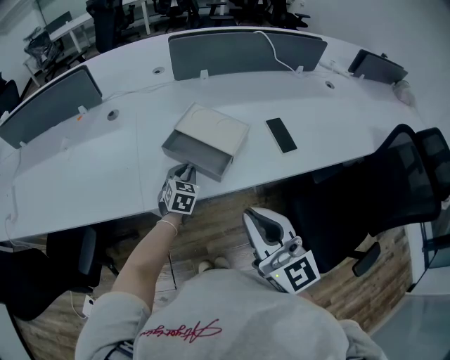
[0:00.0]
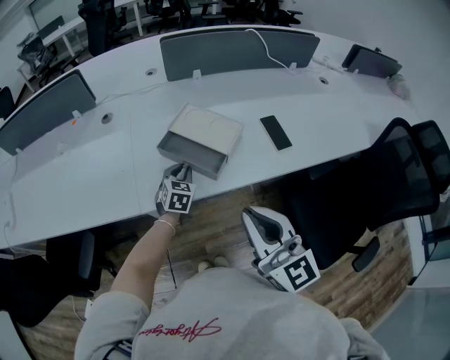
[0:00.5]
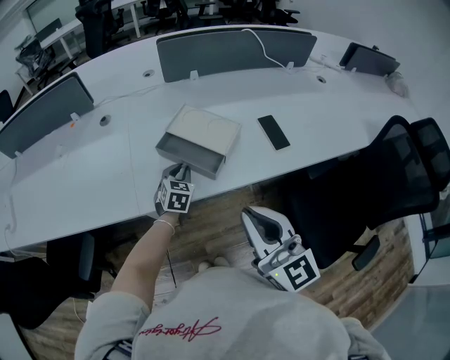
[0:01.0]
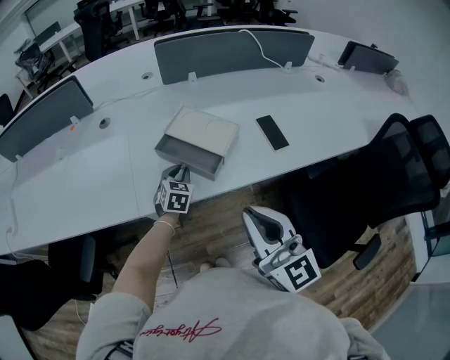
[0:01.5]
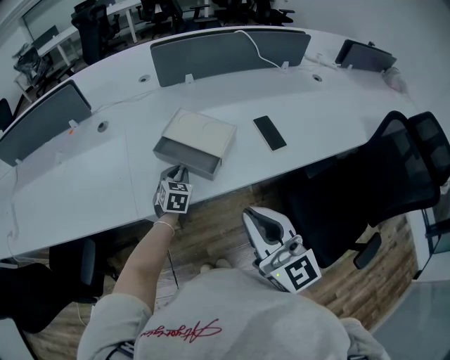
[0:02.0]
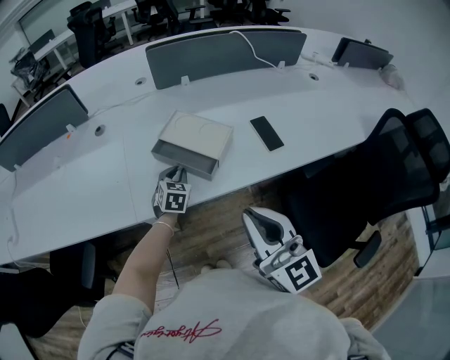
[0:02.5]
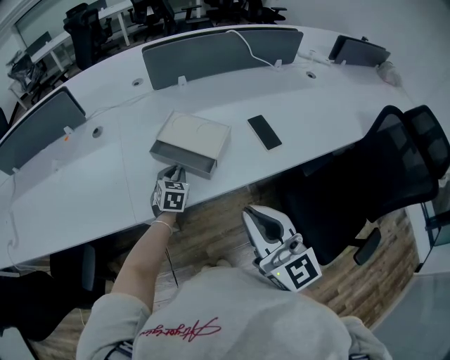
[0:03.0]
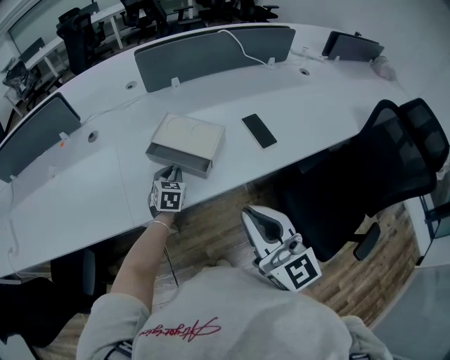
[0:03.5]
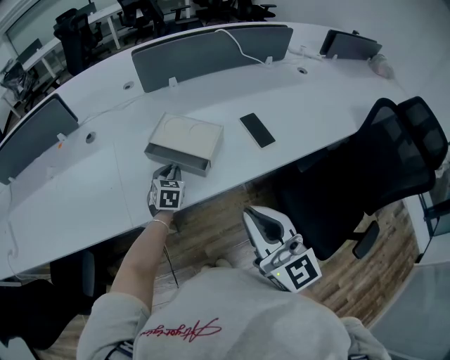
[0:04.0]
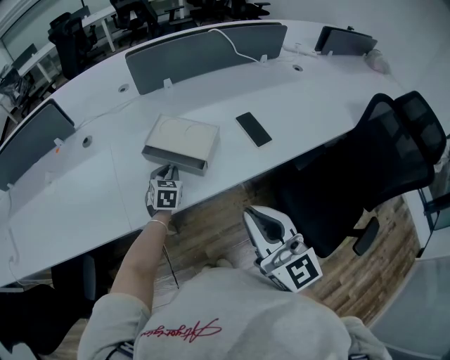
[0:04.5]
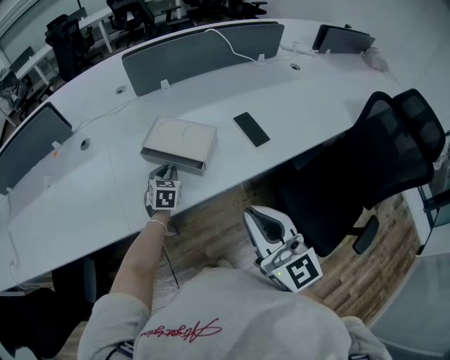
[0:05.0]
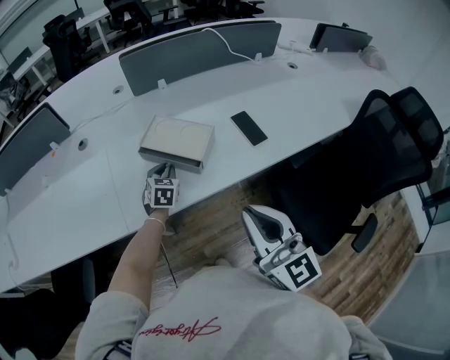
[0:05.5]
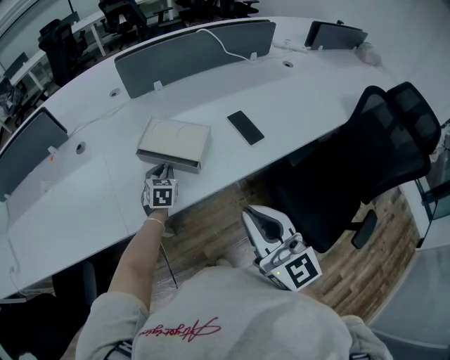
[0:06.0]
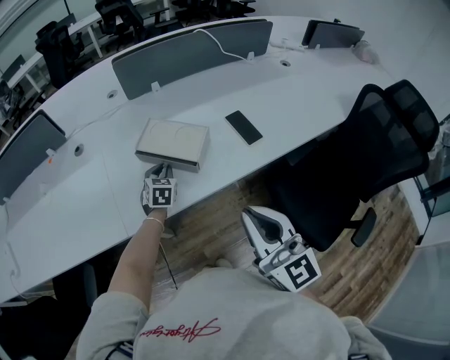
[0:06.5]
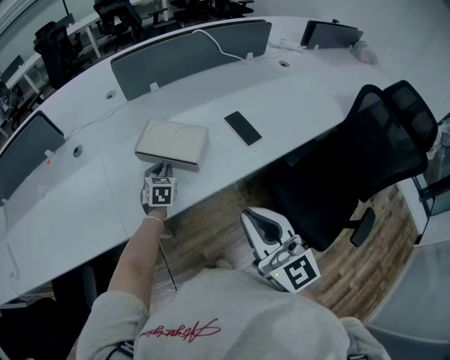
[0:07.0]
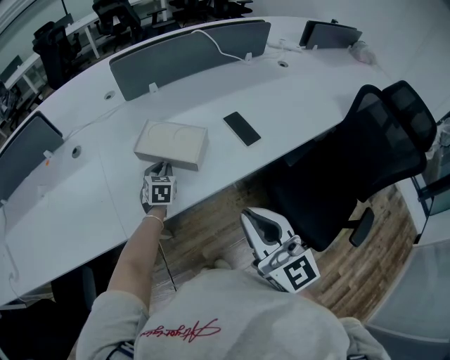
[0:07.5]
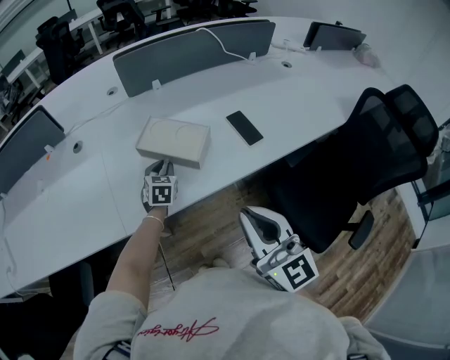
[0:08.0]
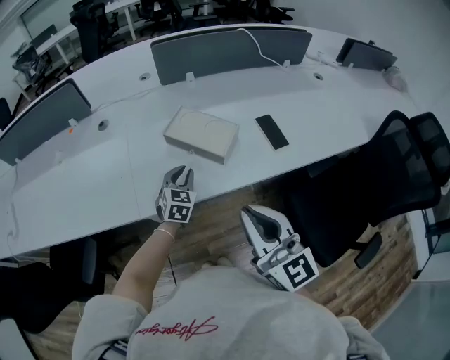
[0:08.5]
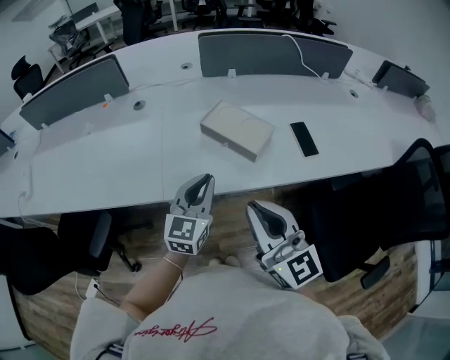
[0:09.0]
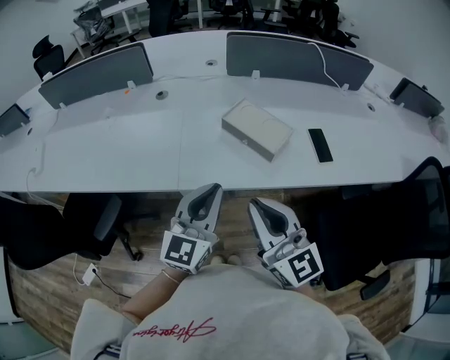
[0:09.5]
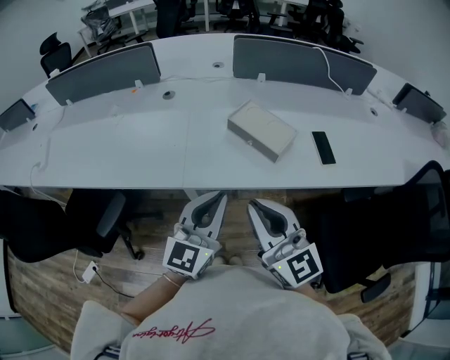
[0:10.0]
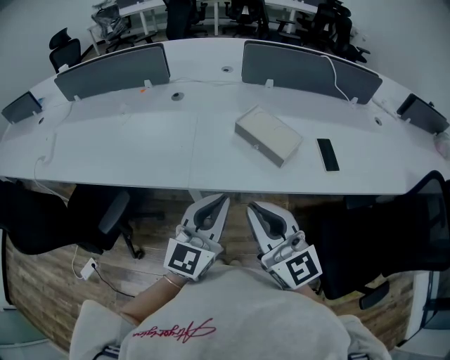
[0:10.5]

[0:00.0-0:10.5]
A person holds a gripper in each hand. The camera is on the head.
0:00.0 to 0:04.0: The grippers move only a little.
0:04.0 to 0:06.5: The grippers move only a little.
0:06.5 to 0:08.5: The left gripper is displaced backward by about 5 cm.
0:08.5 to 0:10.5: The left gripper is displaced backward, upward and to the left by roughly 30 cm, and tips its fingers upward by roughly 30 degrees, while the right gripper heads to the left, covering about 10 cm, and swivels about 20 degrees.

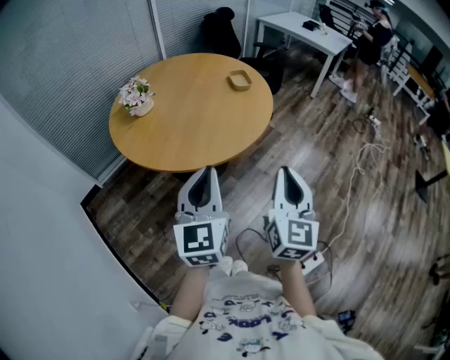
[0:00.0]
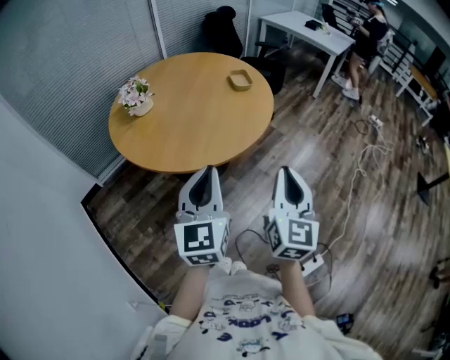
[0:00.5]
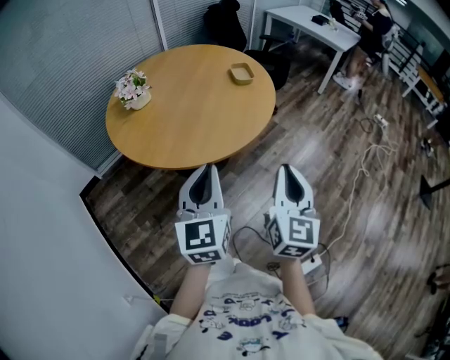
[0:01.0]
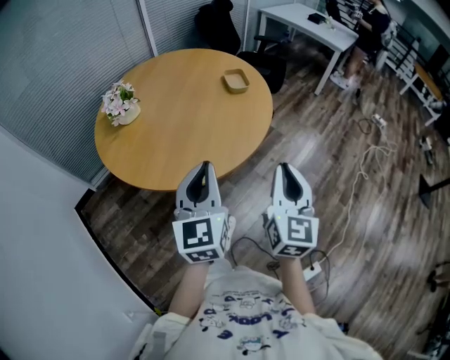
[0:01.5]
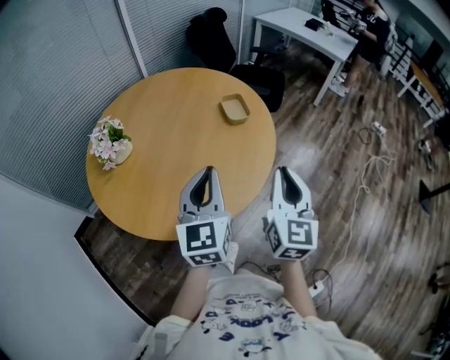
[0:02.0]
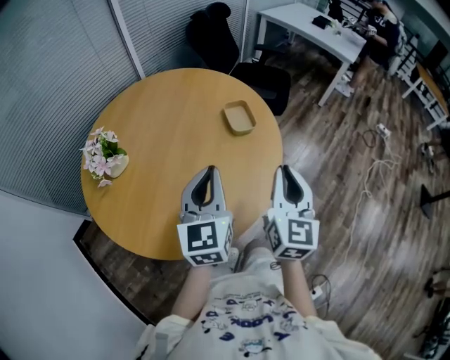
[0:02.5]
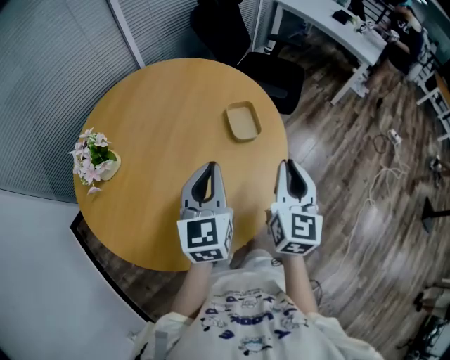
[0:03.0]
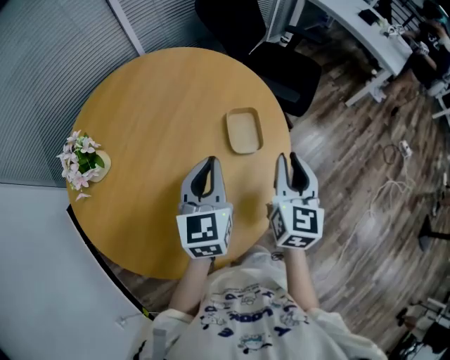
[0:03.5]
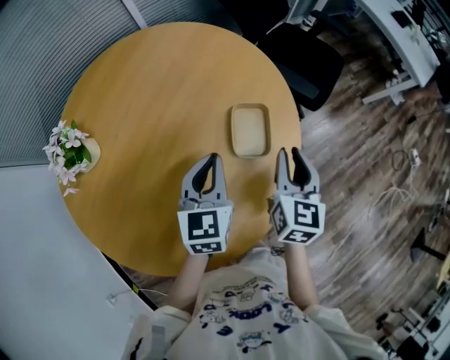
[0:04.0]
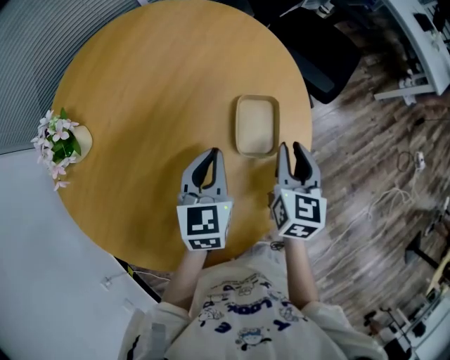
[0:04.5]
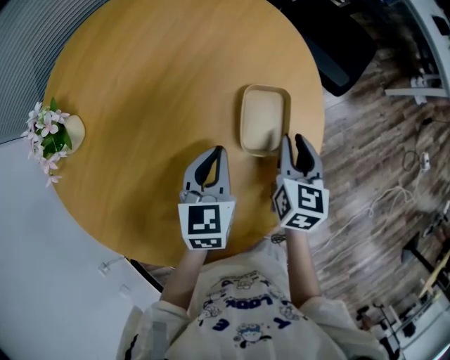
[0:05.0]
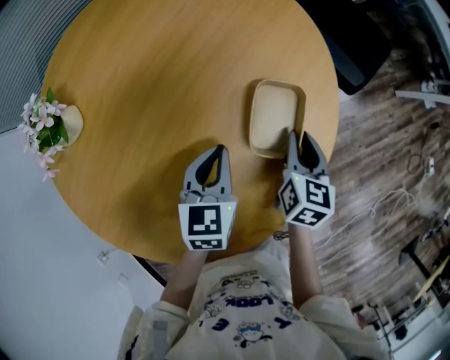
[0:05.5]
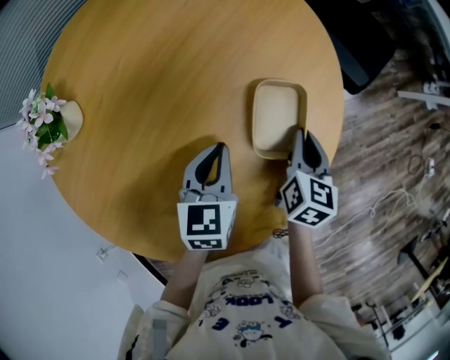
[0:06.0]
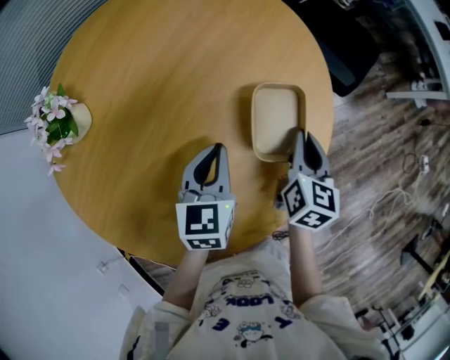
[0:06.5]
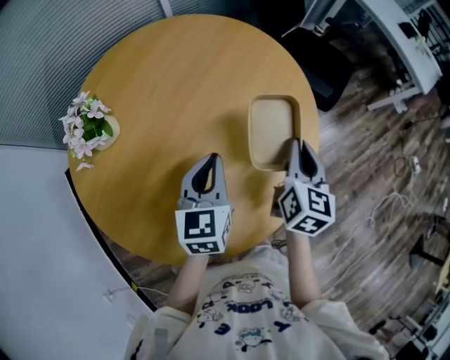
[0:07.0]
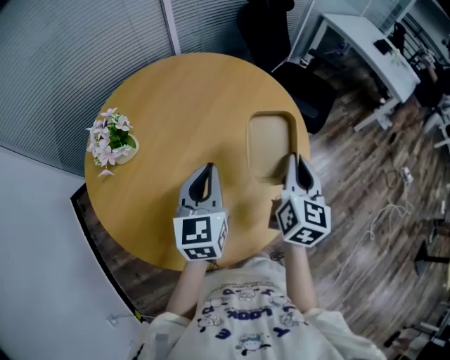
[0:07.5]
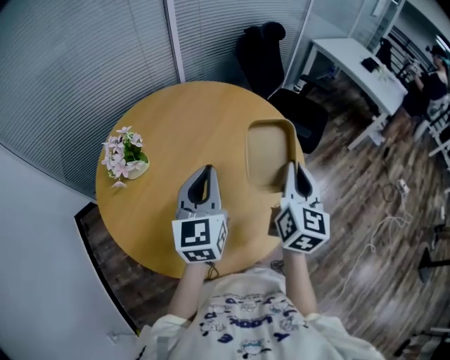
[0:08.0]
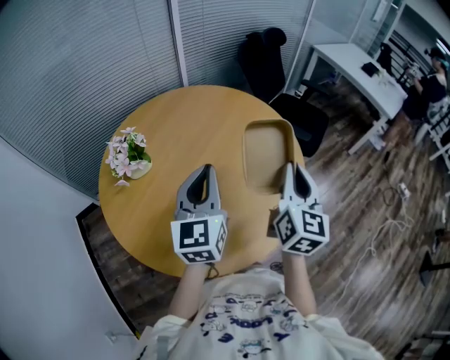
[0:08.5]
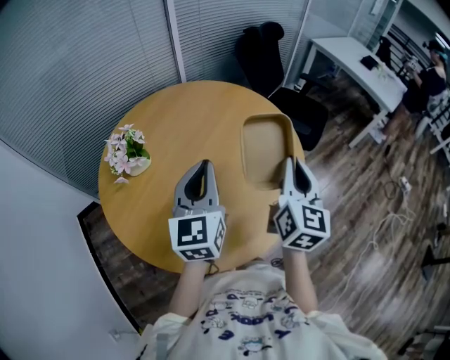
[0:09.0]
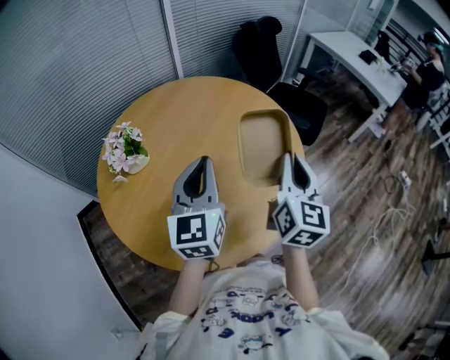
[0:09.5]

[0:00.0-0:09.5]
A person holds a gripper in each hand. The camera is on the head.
0:00.0 to 0:02.0: The grippers both shift forward by about 30 cm.
0:02.0 to 0:04.0: Both grippers travel together forward and downward, some 40 cm. The left gripper rotates roughly 20 degrees; the right gripper changes its angle by roughly 20 degrees.
0:04.0 to 0:05.5: Both grippers move downward, roughly 15 cm.
0:05.5 to 0:07.5: The right gripper shifts roughly 30 cm upward and backward, and swivels about 30 degrees. Meanwhile the left gripper is displaced upward, backward and to the left by some 25 cm, and changes its angle by some 20 degrees.
0:07.5 to 0:09.5: The right gripper heads upward and backward, covering some 10 cm; the left gripper heads upward, covering approximately 10 cm.

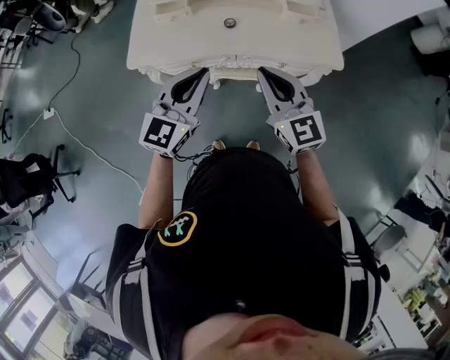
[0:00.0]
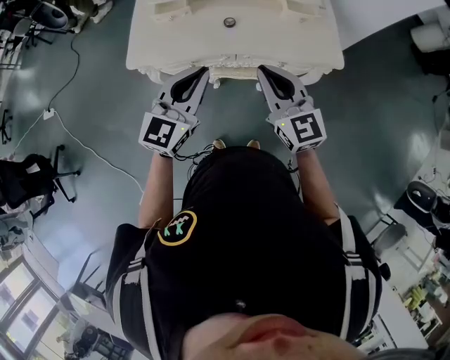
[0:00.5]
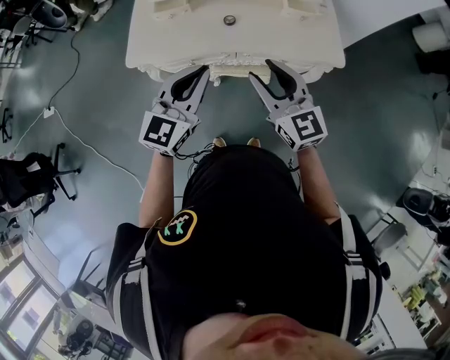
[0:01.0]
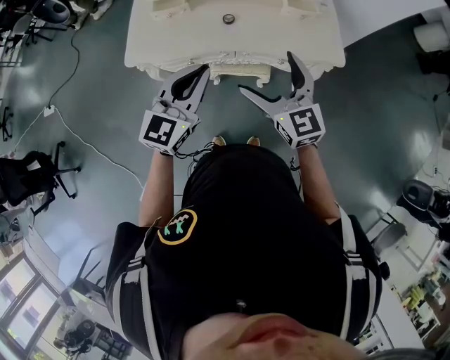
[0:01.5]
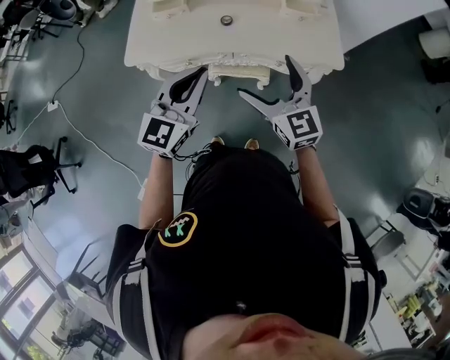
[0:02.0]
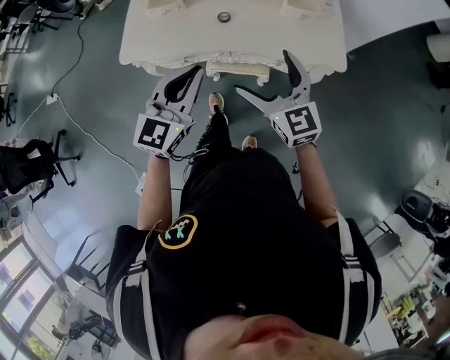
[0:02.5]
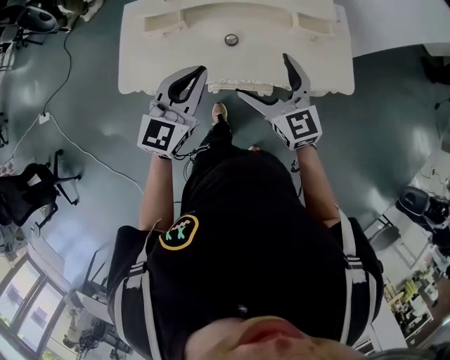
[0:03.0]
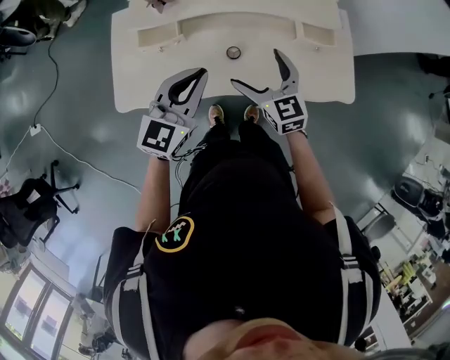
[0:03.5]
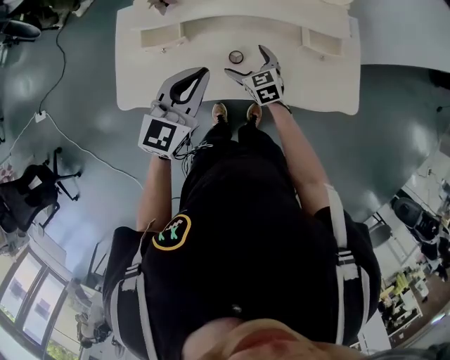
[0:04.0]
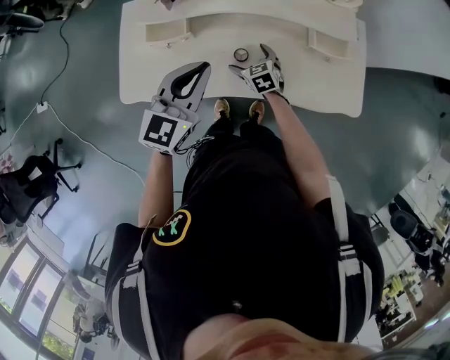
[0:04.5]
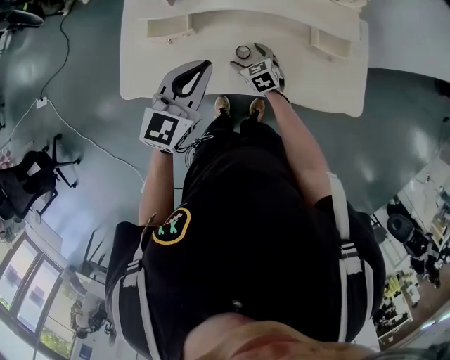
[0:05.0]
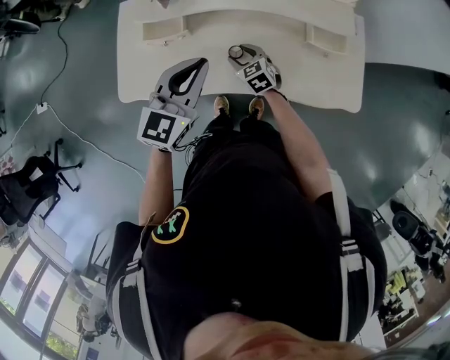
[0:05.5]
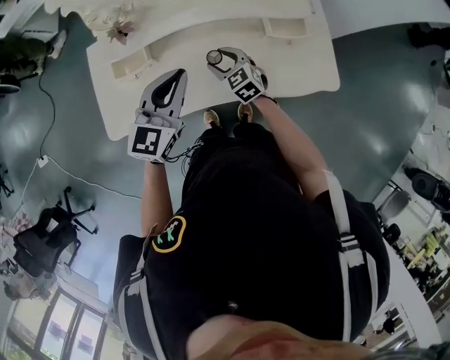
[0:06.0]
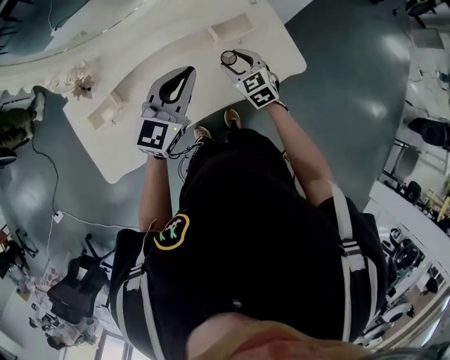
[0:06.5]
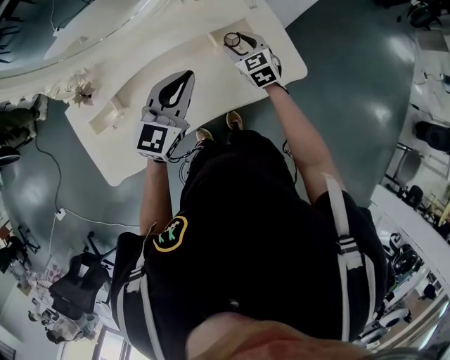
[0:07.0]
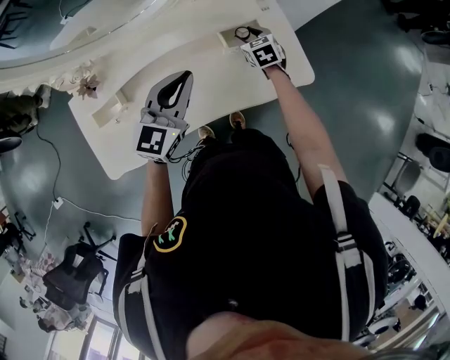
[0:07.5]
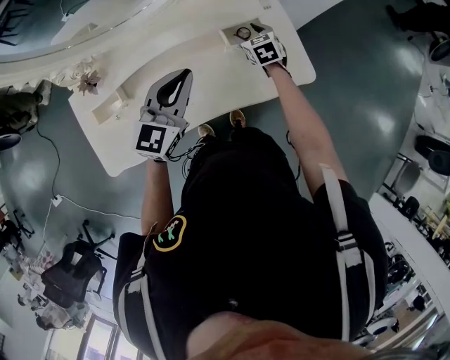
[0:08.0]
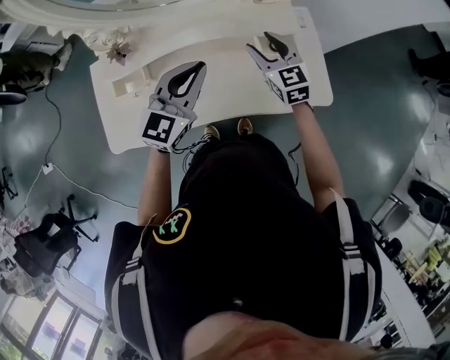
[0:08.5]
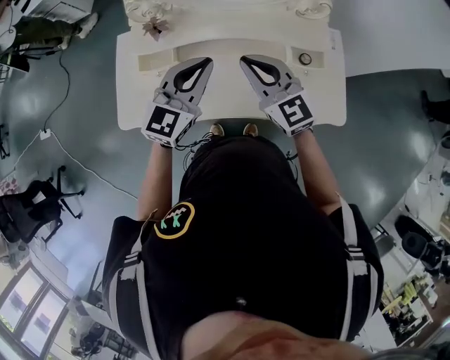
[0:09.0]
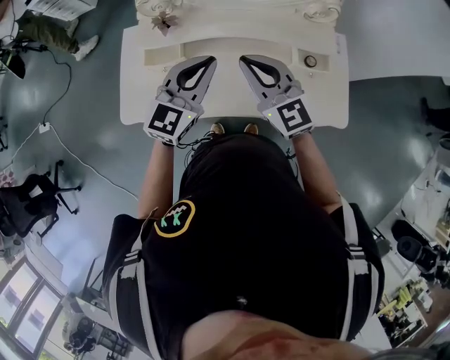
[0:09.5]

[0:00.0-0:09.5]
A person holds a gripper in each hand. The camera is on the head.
0:00.0 to 0:02.0: The right gripper ends up some 5 cm from where it was, and opens its fingers.
0:02.0 to 0:04.0: The right gripper is displaced forward and downward by about 40 cm, and rotates some 30 degrees; the left gripper shifts roughly 30 cm forward.
0:04.0 to 0:05.5: The right gripper closes its fingers.
0:05.5 to 0:07.5: The left gripper moves approximately 20 cm, and changes its angle by about 20 degrees. Meanwhile the right gripper moves about 35 cm, and rotates approximately 40 degrees.
0:07.5 to 0:09.5: The left gripper shifts by about 15 cm. The right gripper moves approximately 40 cm, points its fingers approximately 40 degrees further upward, and closes its fingers.
